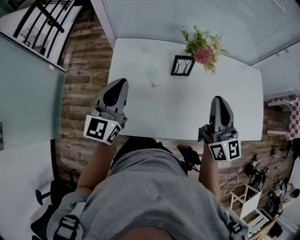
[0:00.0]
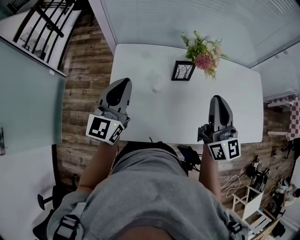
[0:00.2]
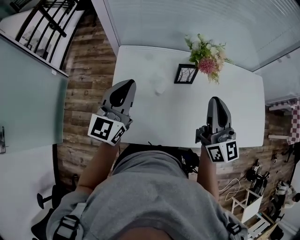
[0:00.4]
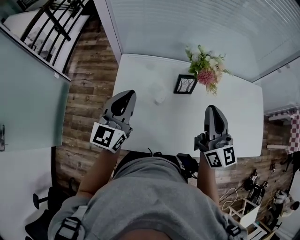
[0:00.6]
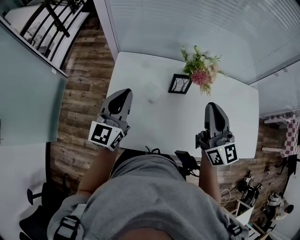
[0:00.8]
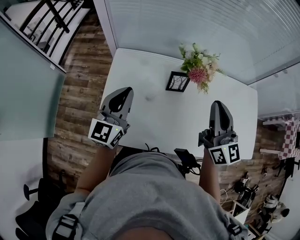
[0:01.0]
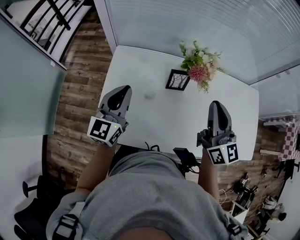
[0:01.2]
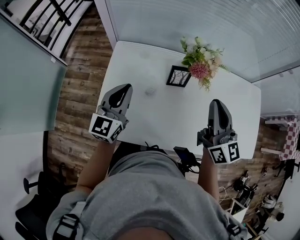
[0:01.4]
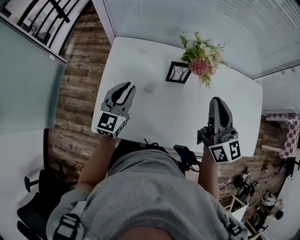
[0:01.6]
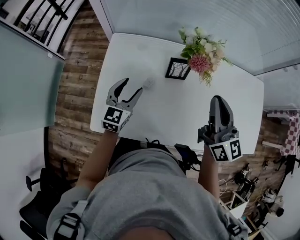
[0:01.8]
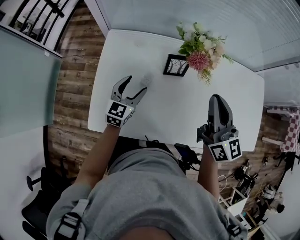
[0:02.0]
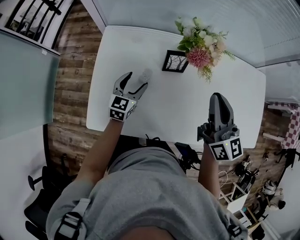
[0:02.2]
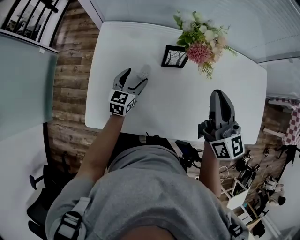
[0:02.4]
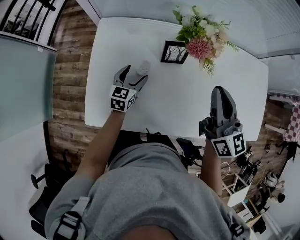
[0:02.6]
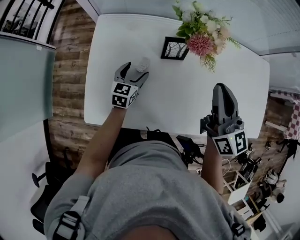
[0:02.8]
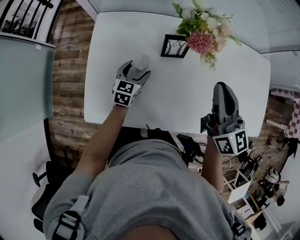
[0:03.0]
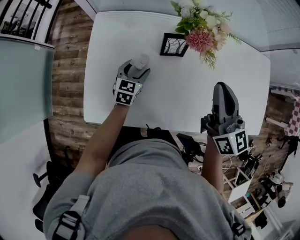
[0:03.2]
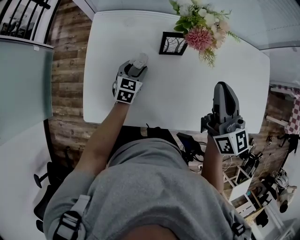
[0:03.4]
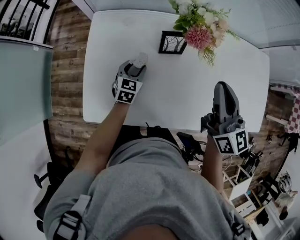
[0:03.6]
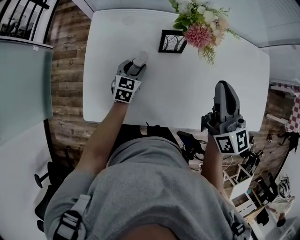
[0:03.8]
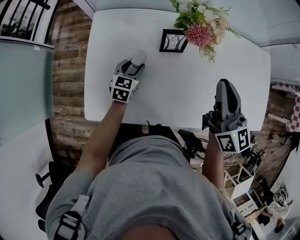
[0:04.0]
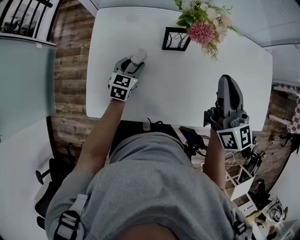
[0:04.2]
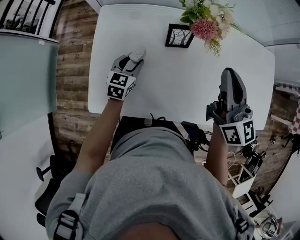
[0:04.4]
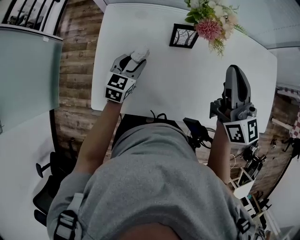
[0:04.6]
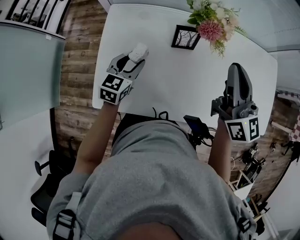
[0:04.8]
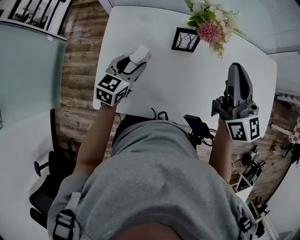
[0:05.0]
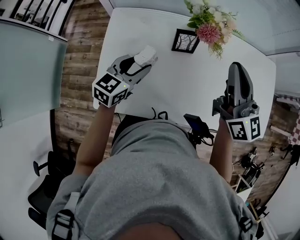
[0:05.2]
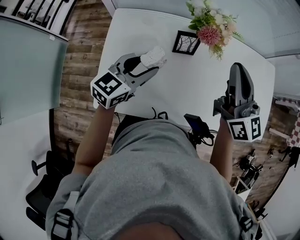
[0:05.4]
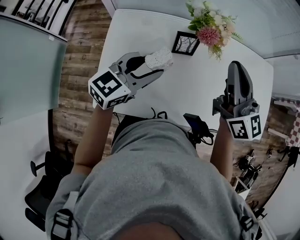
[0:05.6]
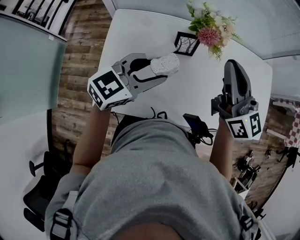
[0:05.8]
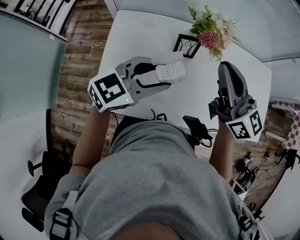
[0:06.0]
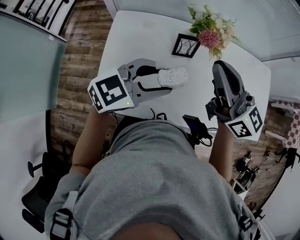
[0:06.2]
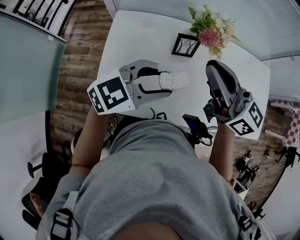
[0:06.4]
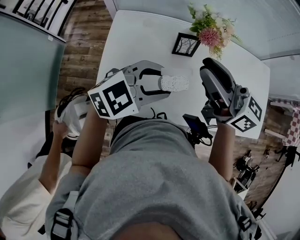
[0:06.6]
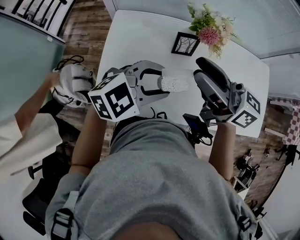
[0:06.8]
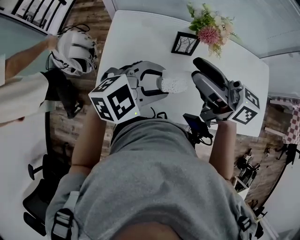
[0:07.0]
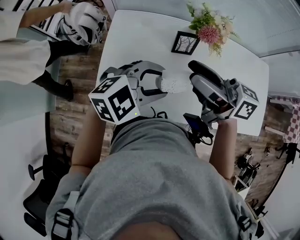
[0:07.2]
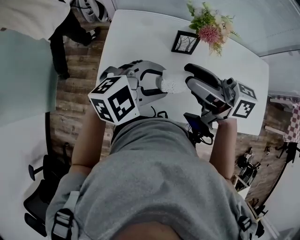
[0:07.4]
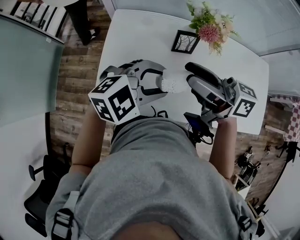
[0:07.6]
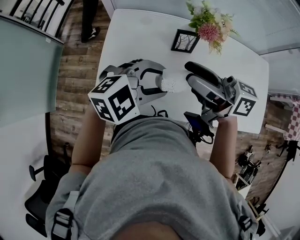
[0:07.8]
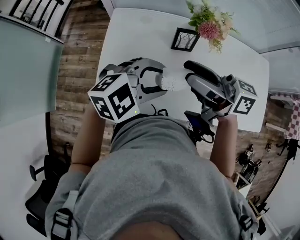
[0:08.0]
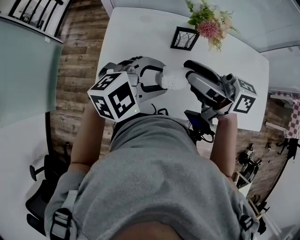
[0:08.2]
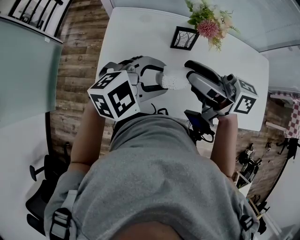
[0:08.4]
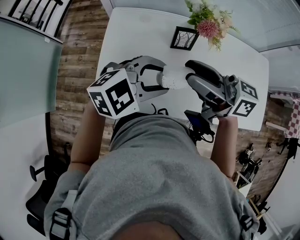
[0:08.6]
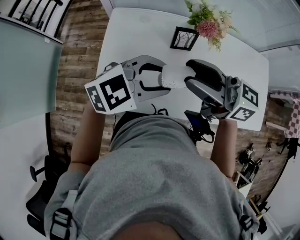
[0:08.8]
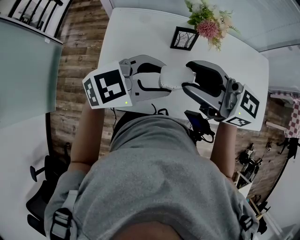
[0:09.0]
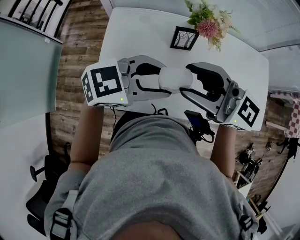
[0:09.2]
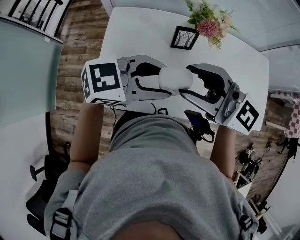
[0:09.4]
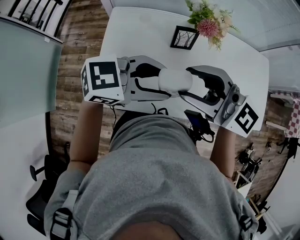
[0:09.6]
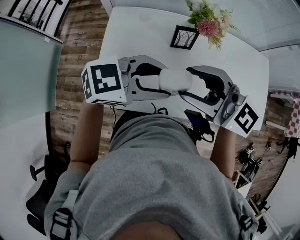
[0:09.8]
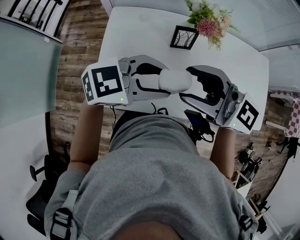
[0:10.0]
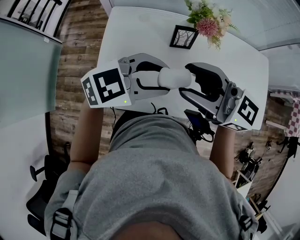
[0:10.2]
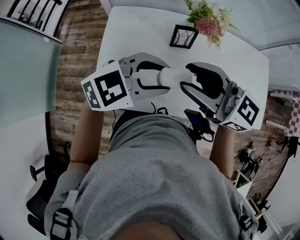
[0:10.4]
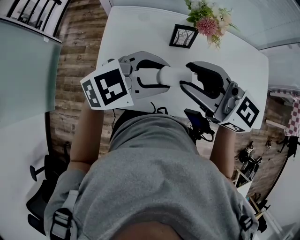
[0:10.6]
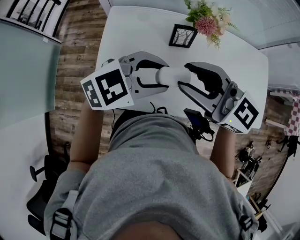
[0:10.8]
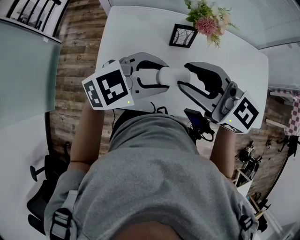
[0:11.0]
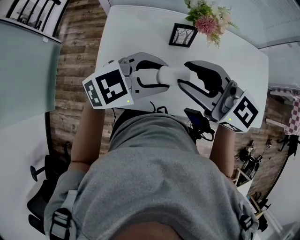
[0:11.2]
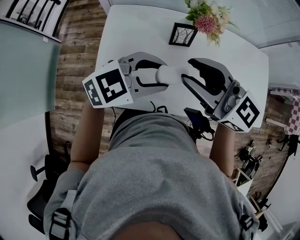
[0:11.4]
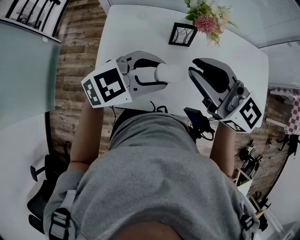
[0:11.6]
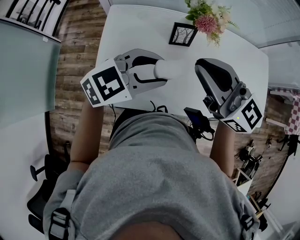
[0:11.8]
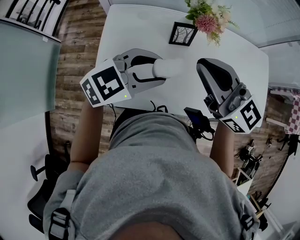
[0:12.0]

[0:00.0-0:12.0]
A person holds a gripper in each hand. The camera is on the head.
0:00.0 to 0:01.6: The left gripper goes roughly 10 cm downward and to the right; the right gripper goes some 5 cm forward.
0:01.6 to 0:03.0: The right gripper moves some 5 cm, while the left gripper is displaced downward by some 20 cm, changes its angle by approximately 20 degrees, and opens up.
0:03.0 to 0:04.4: The left gripper closes its fingers.
0:04.4 to 0:06.0: The right gripper travels upward and to the left by approximately 10 cm. Meanwhile the left gripper travels upward by about 25 cm, and changes its angle by some 40 degrees.
0:06.0 to 0:07.6: The left gripper changes its angle by approximately 30 degrees; the right gripper ends up roughly 10 cm from where it was, changes its angle by roughly 50 degrees, and opens up.
0:07.6 to 0:09.0: The right gripper changes its angle by some 30 degrees.
0:10.4 to 0:12.0: The right gripper closes.

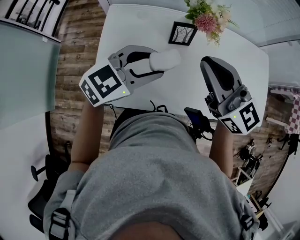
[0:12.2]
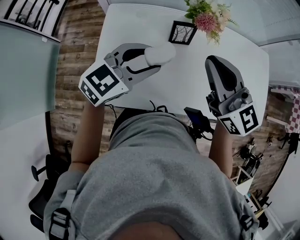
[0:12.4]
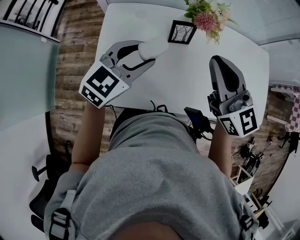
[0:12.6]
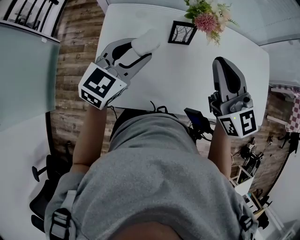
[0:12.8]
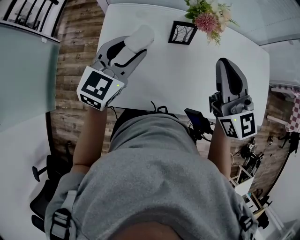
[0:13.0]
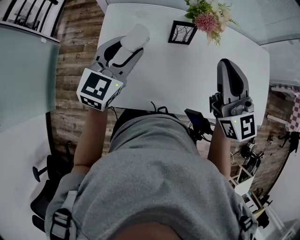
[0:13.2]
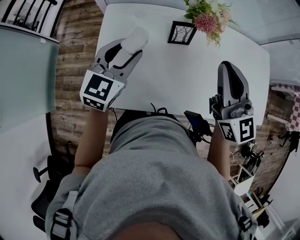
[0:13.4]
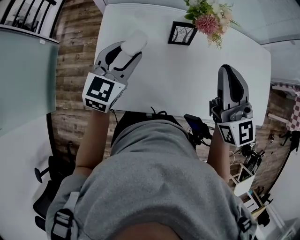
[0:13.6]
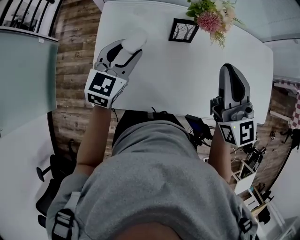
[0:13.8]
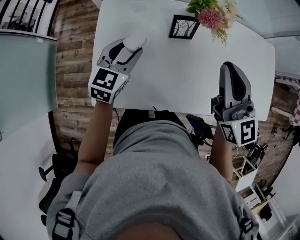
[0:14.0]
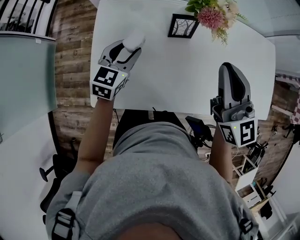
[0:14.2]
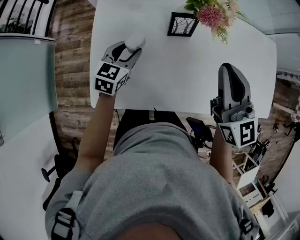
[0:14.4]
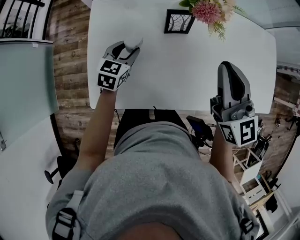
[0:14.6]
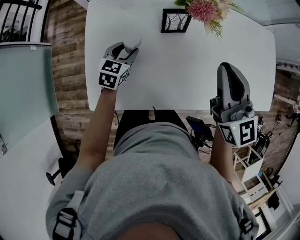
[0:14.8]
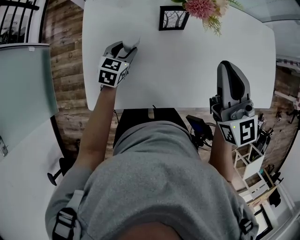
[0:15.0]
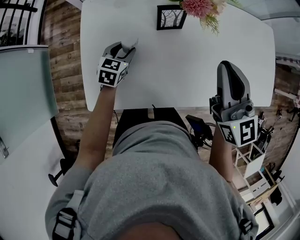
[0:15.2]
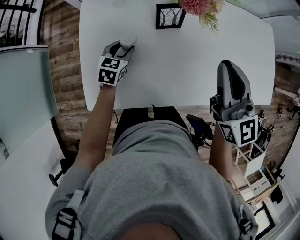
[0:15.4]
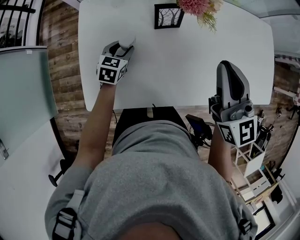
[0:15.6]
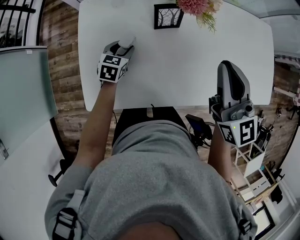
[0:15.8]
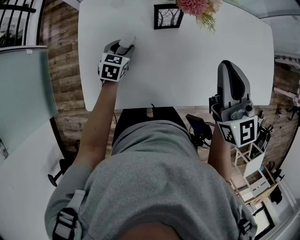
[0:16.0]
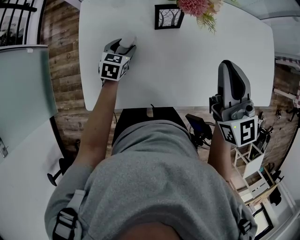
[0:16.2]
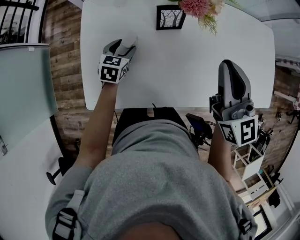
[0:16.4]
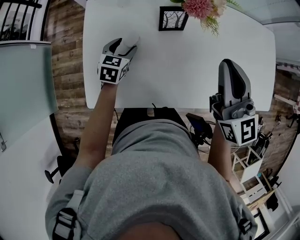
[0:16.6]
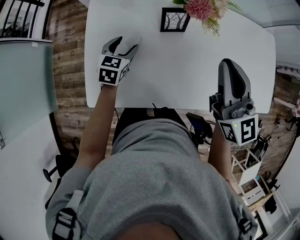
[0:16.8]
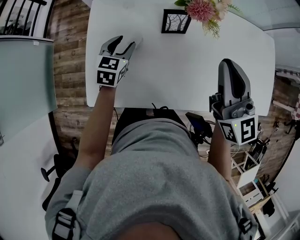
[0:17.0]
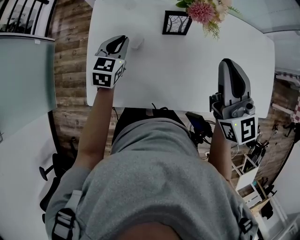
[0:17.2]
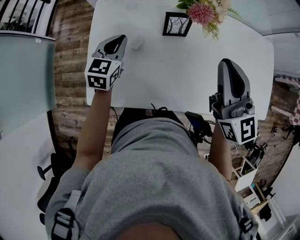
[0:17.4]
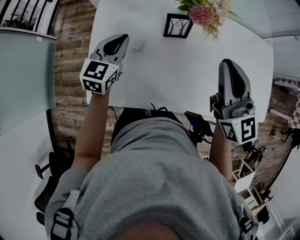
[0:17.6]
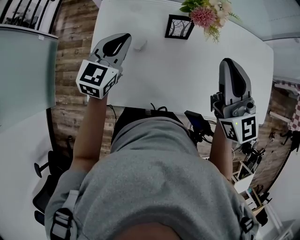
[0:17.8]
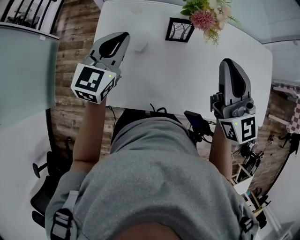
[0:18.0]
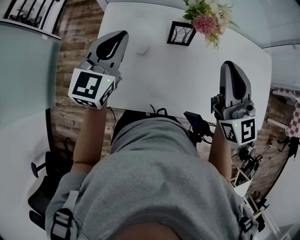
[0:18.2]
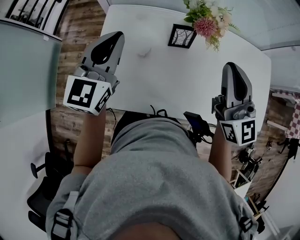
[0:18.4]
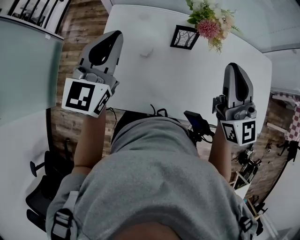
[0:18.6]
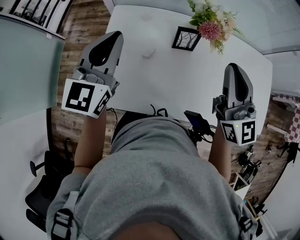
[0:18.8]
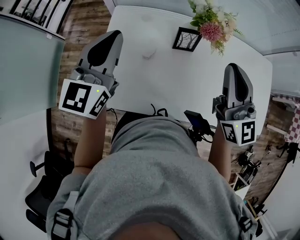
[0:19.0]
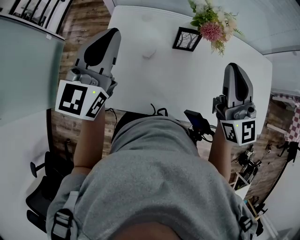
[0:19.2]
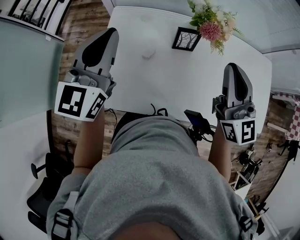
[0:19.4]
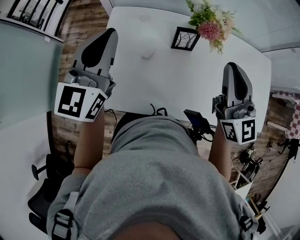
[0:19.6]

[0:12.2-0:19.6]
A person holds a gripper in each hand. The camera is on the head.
0:12.2 to 0:13.6: The right gripper heads to the right, covering about 5 cm, and changes its angle by about 20 degrees; the left gripper moves to the left and forward, some 10 cm, and swivels roughly 30 degrees.
0:13.6 to 0:15.2: The right gripper changes place by some 5 cm. The left gripper is displaced downward by approximately 20 cm, and rotates about 20 degrees.
0:15.2 to 0:16.6: The grippers stay close to where they were, moving slightly.
0:16.6 to 0:18.2: The left gripper heads upward, covering about 25 cm, tilts its fingers roughly 30 degrees upward, and closes its fingers, while the right gripper changes place by roughly 5 cm.
0:18.2 to 0:19.6: The left gripper shifts some 10 cm upward.

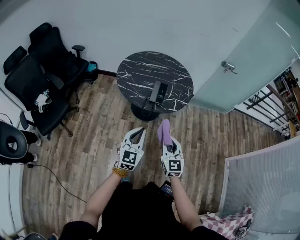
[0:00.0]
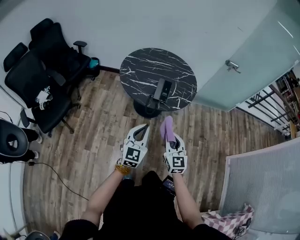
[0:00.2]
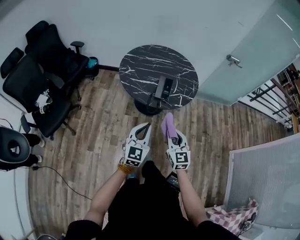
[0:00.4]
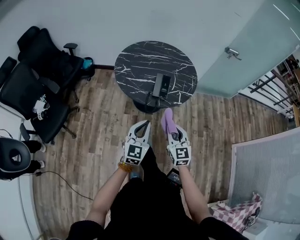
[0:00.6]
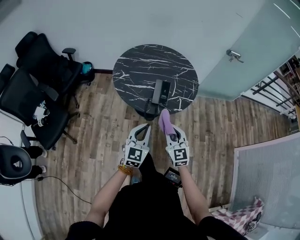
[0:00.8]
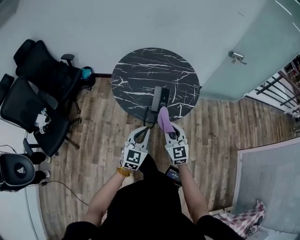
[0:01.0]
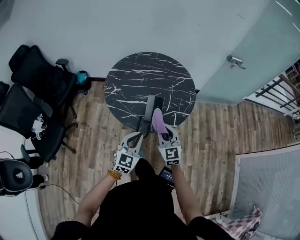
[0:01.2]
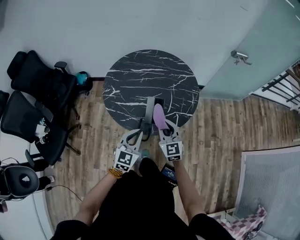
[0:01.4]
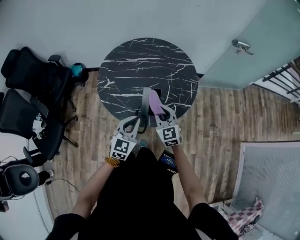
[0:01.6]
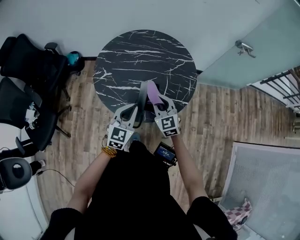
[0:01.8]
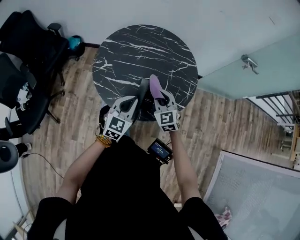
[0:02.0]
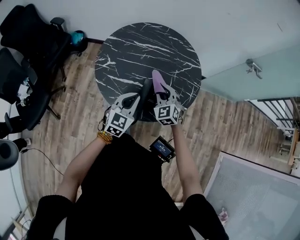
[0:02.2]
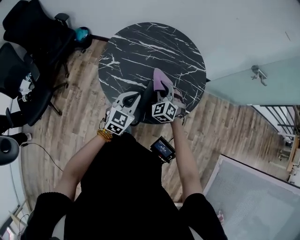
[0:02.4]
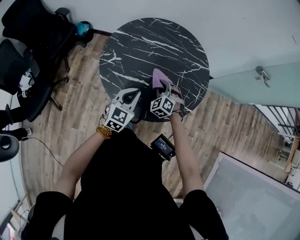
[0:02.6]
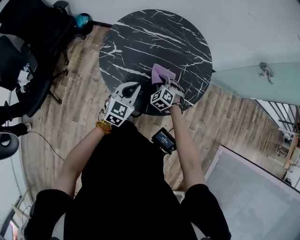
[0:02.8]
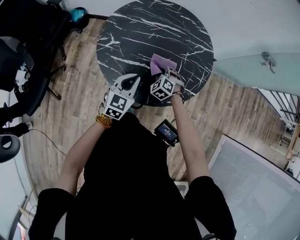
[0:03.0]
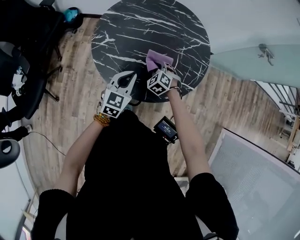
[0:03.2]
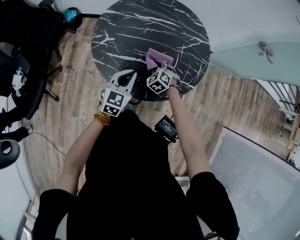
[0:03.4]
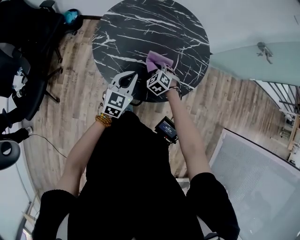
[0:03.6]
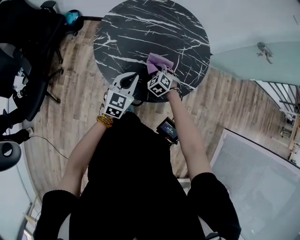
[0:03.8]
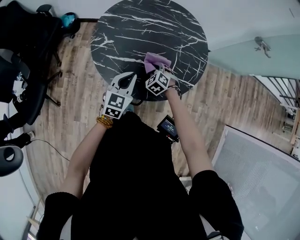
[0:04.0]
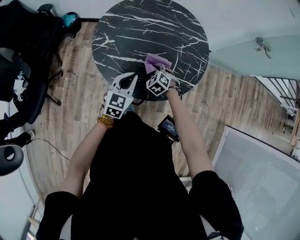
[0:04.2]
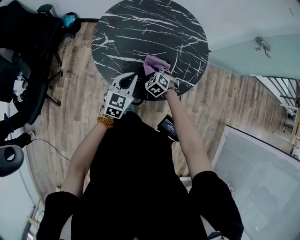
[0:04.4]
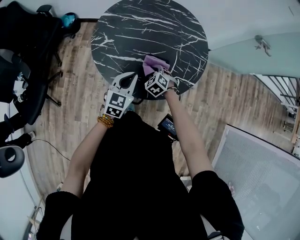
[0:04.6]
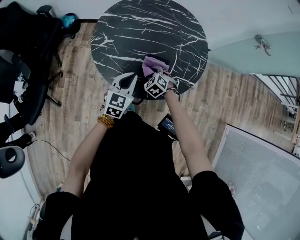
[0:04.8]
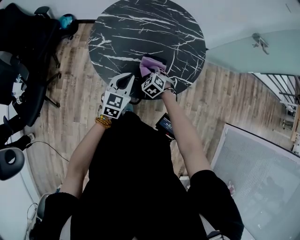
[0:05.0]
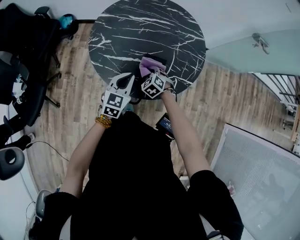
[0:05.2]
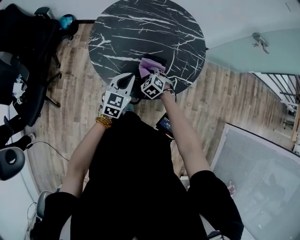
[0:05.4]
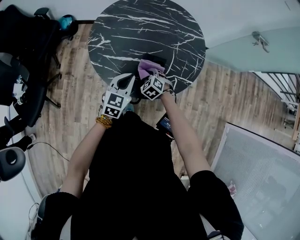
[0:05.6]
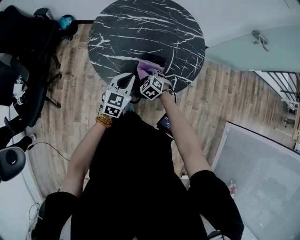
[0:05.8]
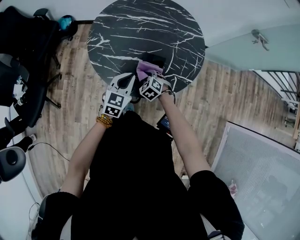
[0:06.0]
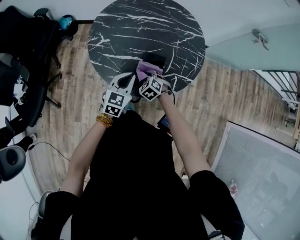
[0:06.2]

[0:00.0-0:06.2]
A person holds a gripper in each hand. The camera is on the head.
0:00.0 to 0:01.6: The grippers both shift forward by some 35 cm.
0:01.6 to 0:03.2: The right gripper travels downward and forward by roughly 25 cm, and tips its fingers downward by some 40 degrees. The left gripper heads forward and downward, covering approximately 15 cm.
0:03.2 to 0:04.6: The grippers move only a little.
0:04.6 to 0:06.2: The grippers move only a little.
